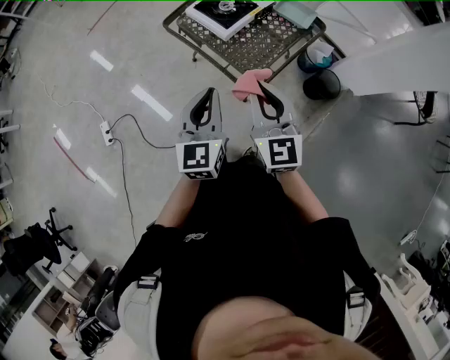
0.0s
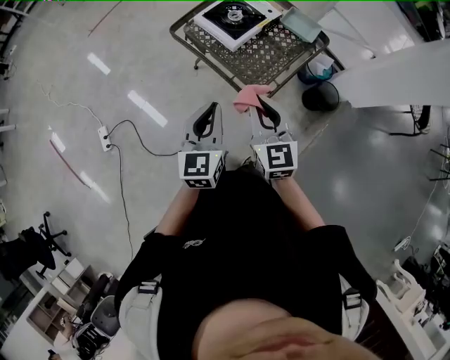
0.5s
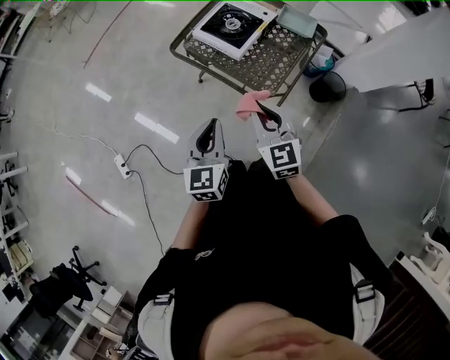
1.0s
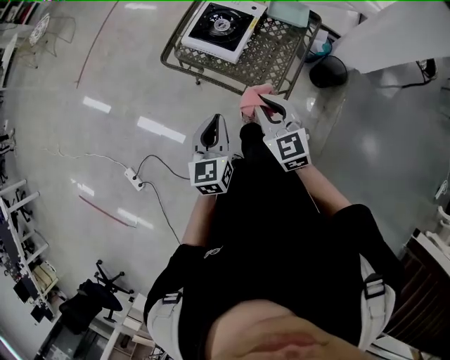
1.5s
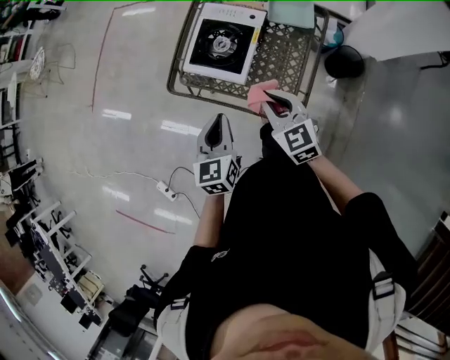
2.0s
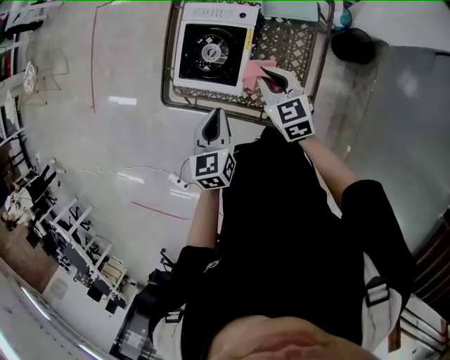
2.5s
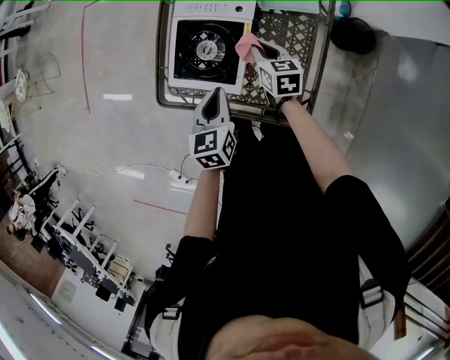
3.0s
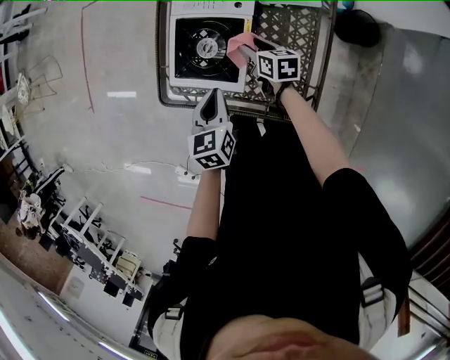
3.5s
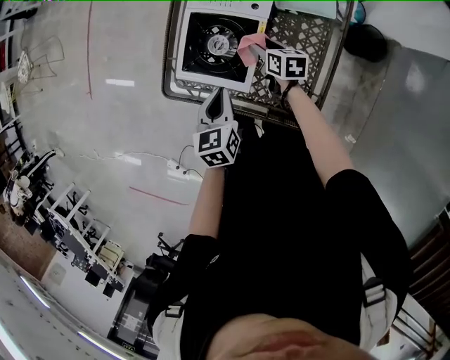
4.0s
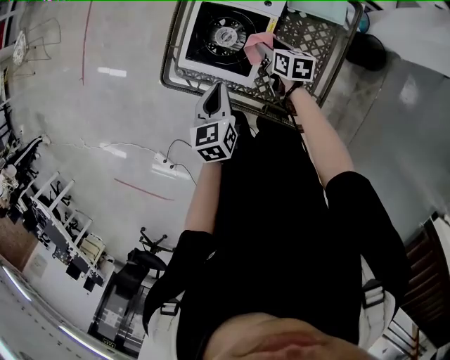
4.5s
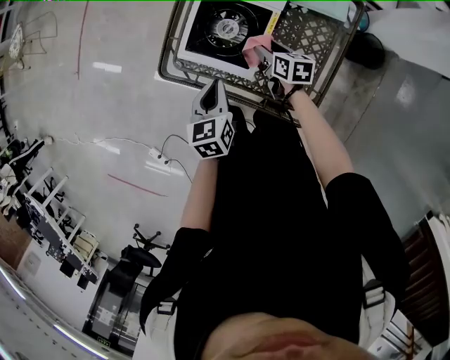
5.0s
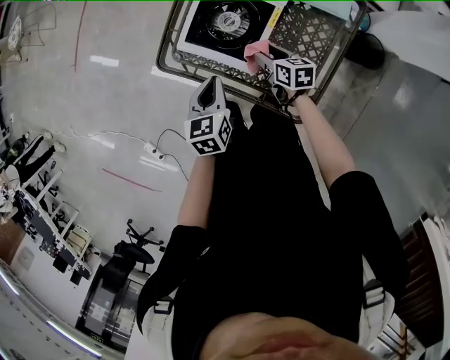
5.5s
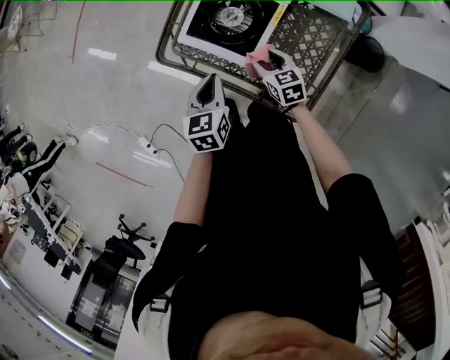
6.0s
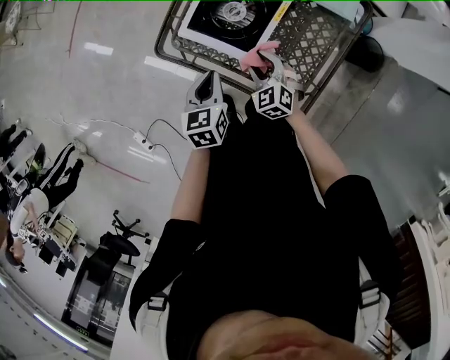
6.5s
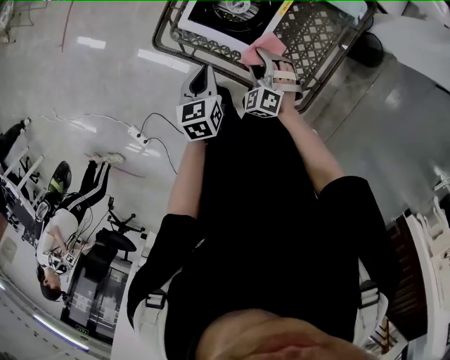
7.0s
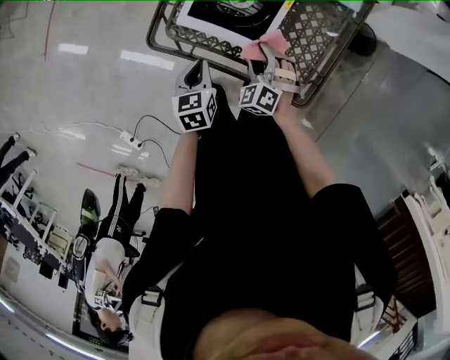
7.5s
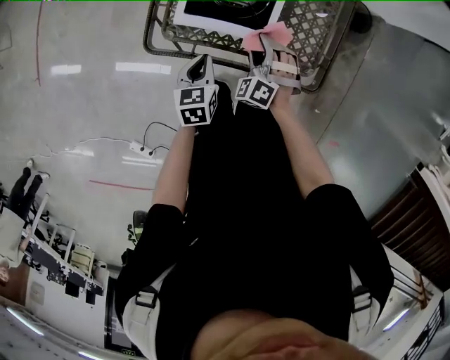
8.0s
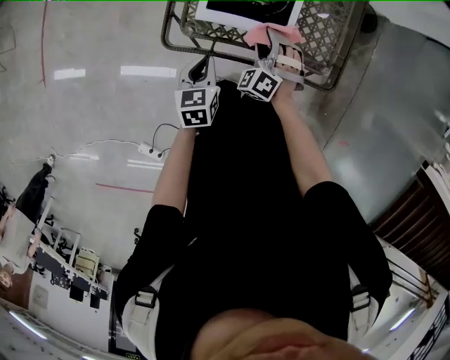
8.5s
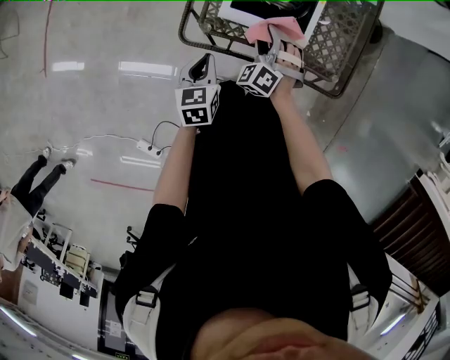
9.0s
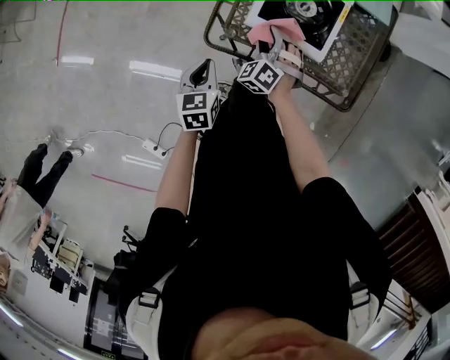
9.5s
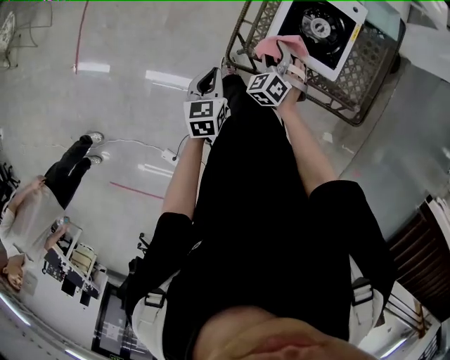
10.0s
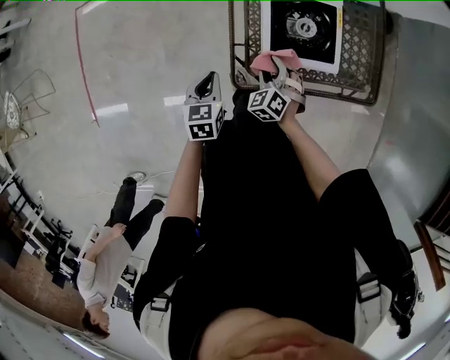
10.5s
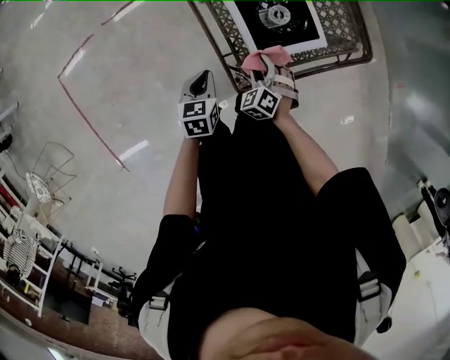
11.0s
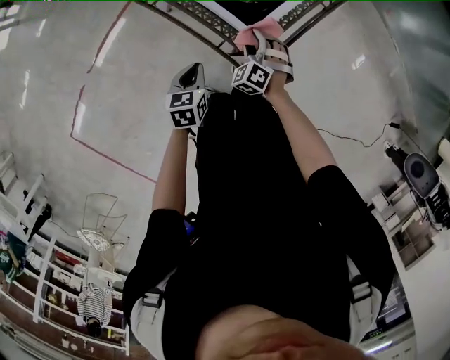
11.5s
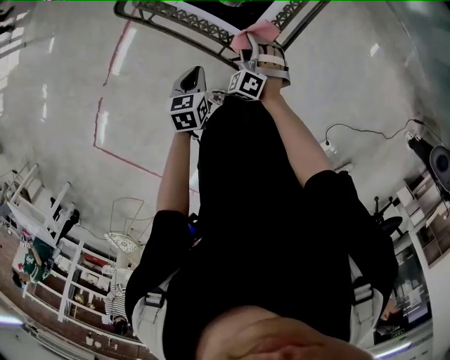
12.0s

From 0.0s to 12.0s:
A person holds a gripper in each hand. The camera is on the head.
From 0.0s to 2.0s: Both grippers travel together forward and downward, some 25 cm. The left gripper changes its angle by some 30 degrees; the right gripper swivels approximately 20 degrees.
From 2.0s to 4.0s: The left gripper shifts some 20 cm forward and downward. The right gripper heads downward and forward, covering approximately 35 cm, rolls clockwise, seen from behind, by about 50 degrees, and opens up.
From 4.0s to 6.0s: The right gripper is displaced backward and to the left by roughly 10 cm, and rotates about 30 degrees. Meanwhile the left gripper heads to the left, covering some 5 cm.
From 6.0s to 8.0s: The left gripper moves downward, some 10 cm, and changes its angle by approximately 20 degrees. Meanwhile the right gripper ends up about 5 cm from where it was, and rotates some 70 degrees.
From 8.0s to 10.0s: The grippers both shift to the left by roughly 20 cm.
From 10.0s to 12.0s: The left gripper moves about 20 cm, and rotates some 70 degrees; the right gripper changes its angle by some 60 degrees.

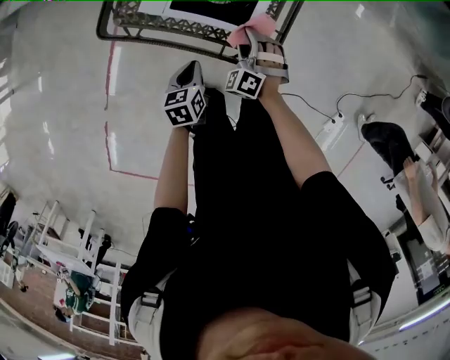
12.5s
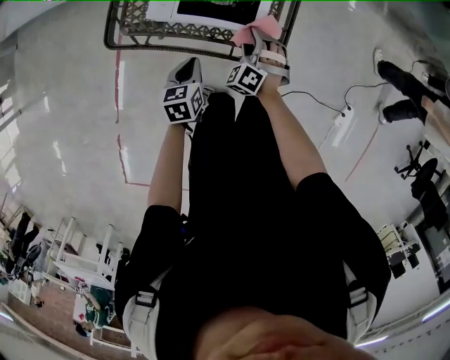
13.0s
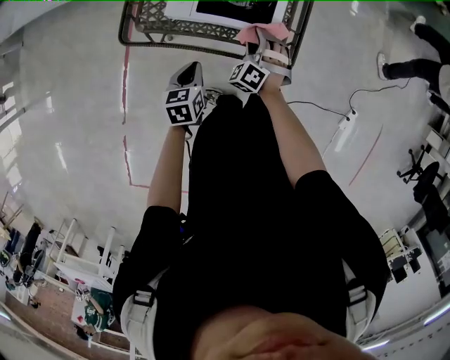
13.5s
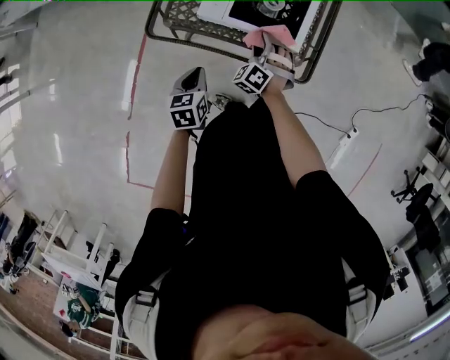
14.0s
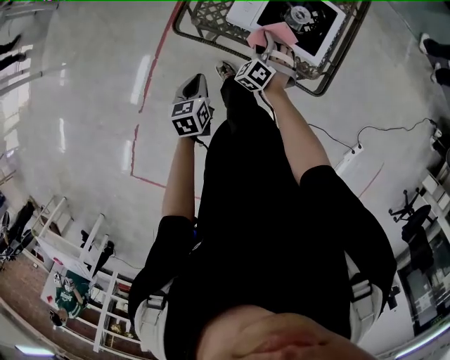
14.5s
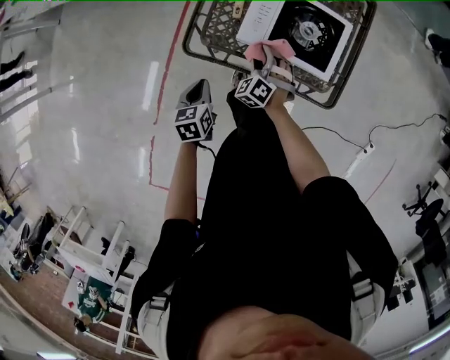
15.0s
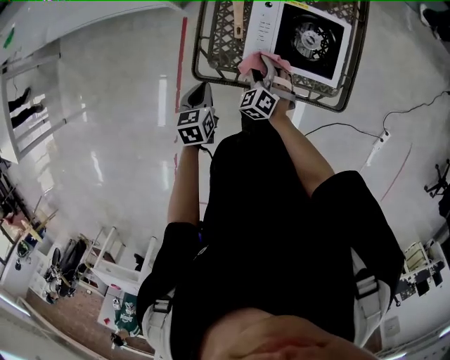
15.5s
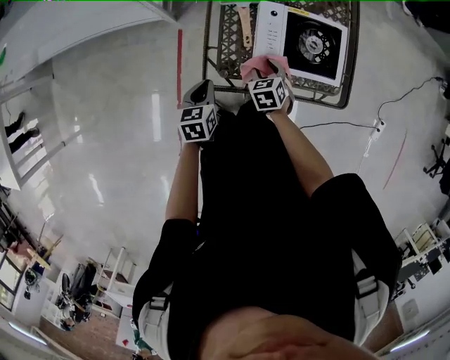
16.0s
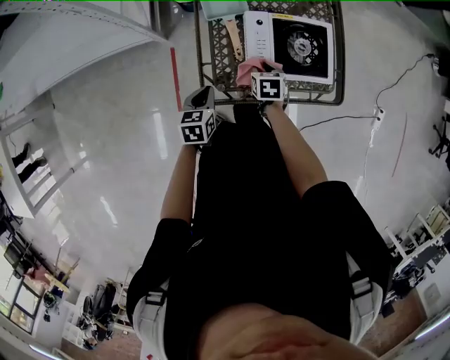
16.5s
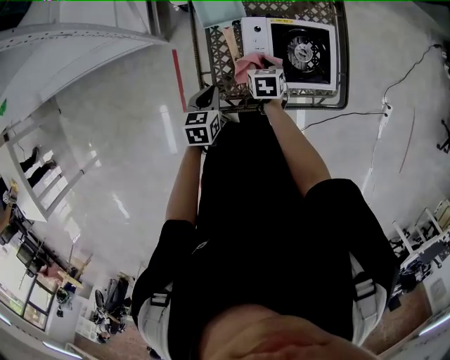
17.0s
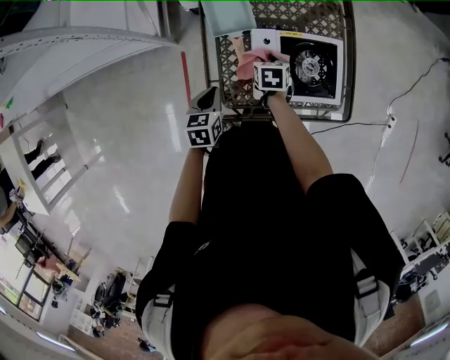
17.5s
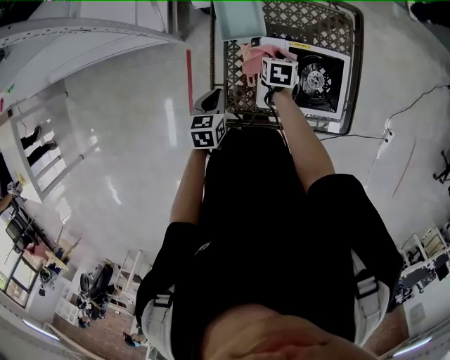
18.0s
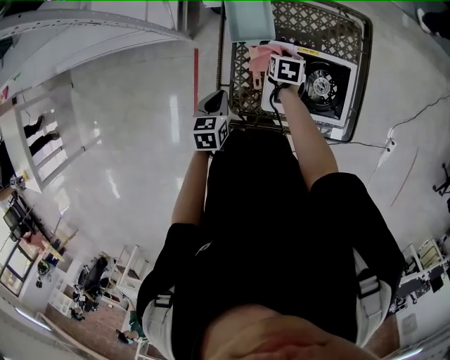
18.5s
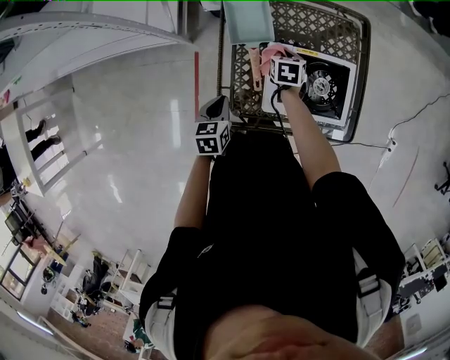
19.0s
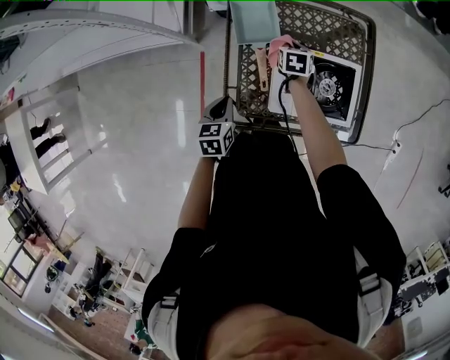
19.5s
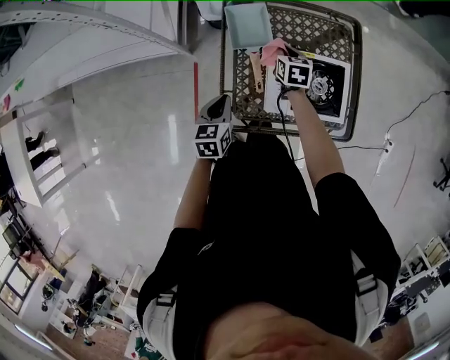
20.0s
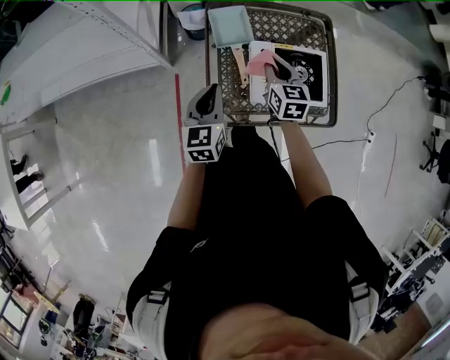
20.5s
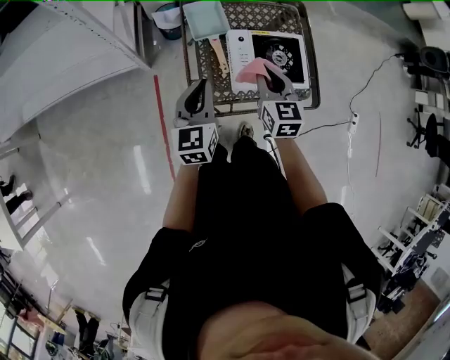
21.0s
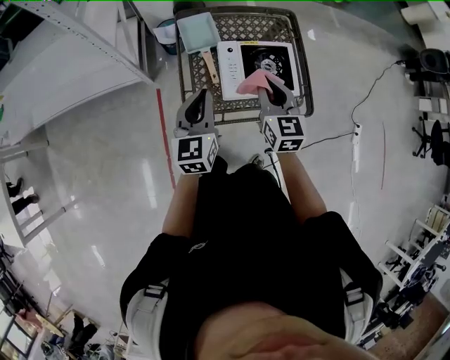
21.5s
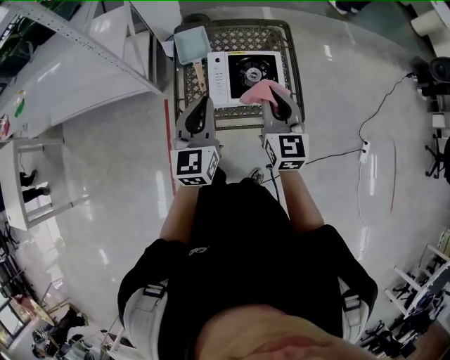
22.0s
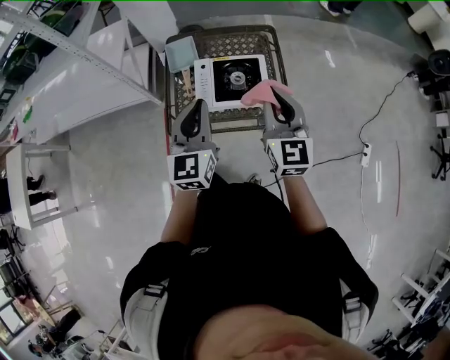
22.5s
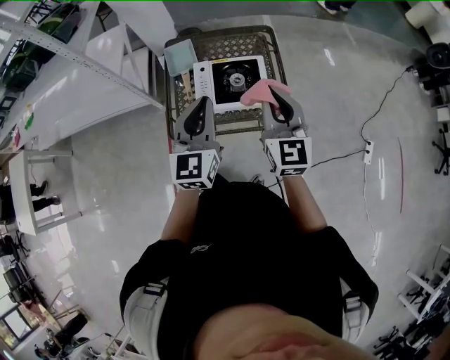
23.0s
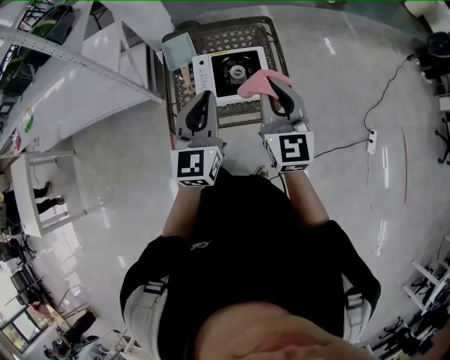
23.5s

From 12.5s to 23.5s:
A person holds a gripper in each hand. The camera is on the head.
From 12.5s to 14.5s: The two grippers go about 20 cm to the left.
From 14.5s to 16.0s: The left gripper heads forward and to the left, covering some 25 cm, and changes its angle by about 20 degrees. The right gripper moves to the left and forward, roughly 15 cm, and rotates around the line of its fingers by approximately 50 degrees, clockwise from behind.
From 16.0s to 18.0s: The grippers both shift forward by approximately 15 cm. The right gripper changes its angle by some 30 degrees.
From 18.0s to 20.0s: Both grippers move upward, about 5 cm. The right gripper closes.
From 20.0s to 21.5s: The left gripper shifts some 20 cm upward, backward and to the right, and swivels roughly 30 degrees, while the right gripper moves backward and upward, about 35 cm, and turns by about 30 degrees.
From 21.5s to 23.5s: The left gripper goes about 25 cm to the right and upward. Meanwhile the right gripper shifts some 25 cm to the right, upward and backward.

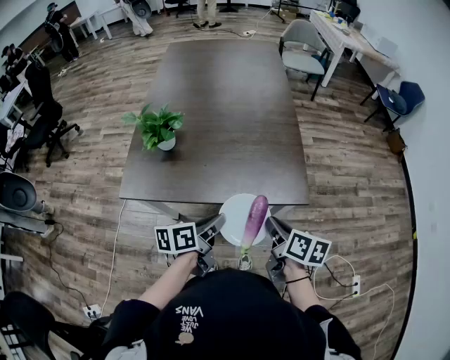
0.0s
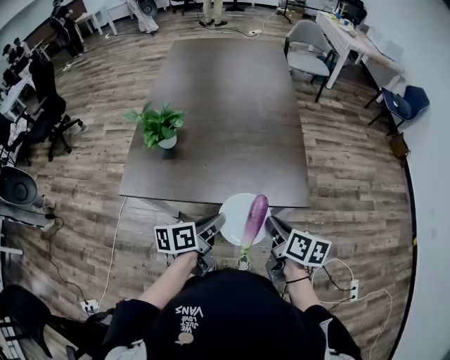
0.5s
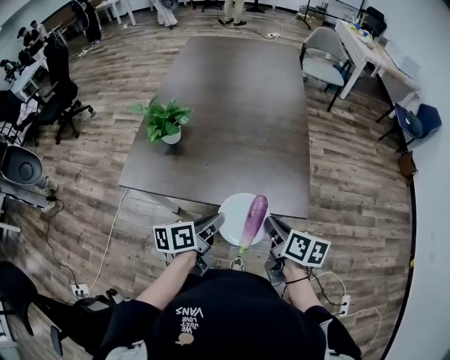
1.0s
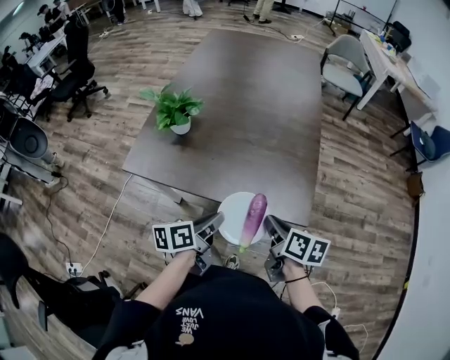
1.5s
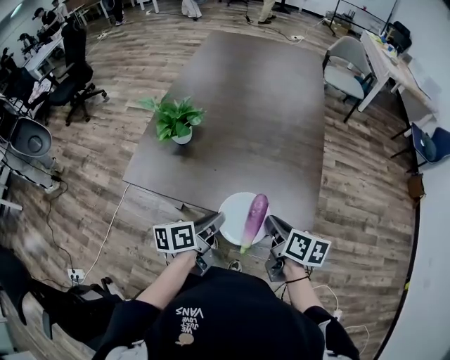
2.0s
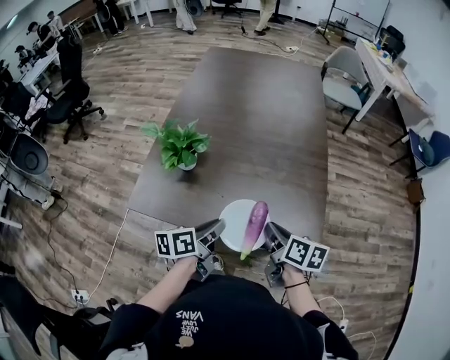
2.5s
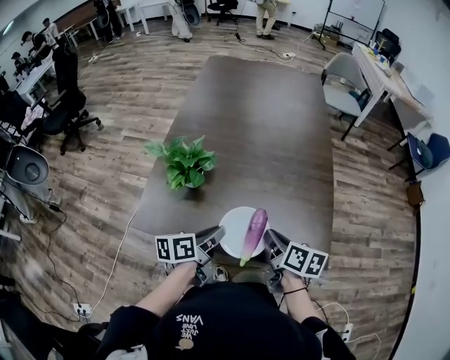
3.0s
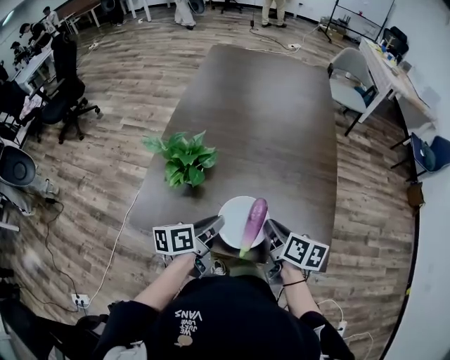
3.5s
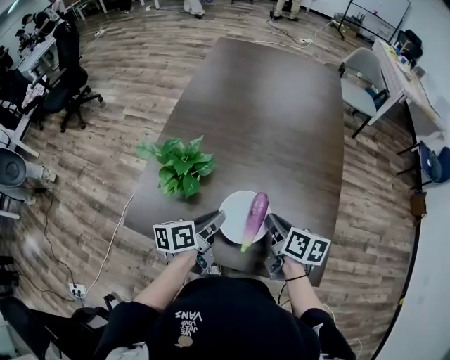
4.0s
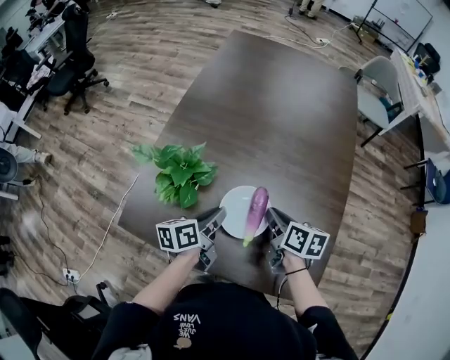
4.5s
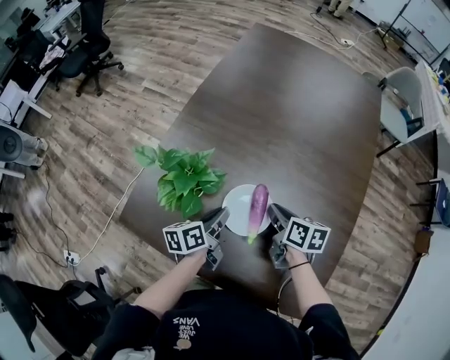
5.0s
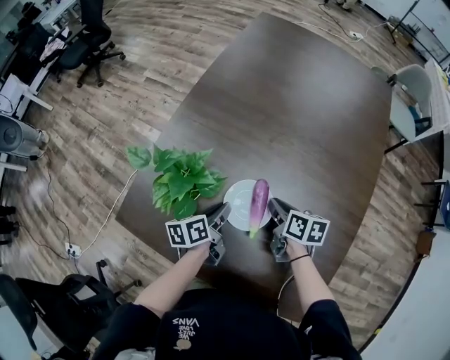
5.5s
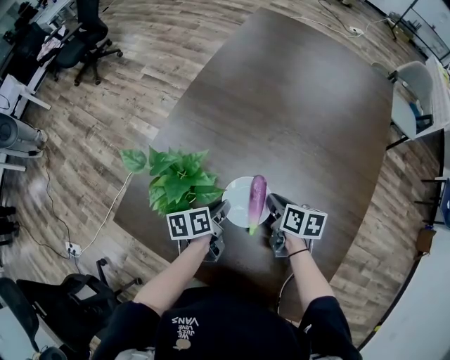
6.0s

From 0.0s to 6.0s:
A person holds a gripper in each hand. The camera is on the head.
From 0.0s to 2.0s: The right gripper moves forward, roughly 10 cm, while the left gripper goes approximately 5 cm forward.
From 2.0s to 4.0s: Both grippers travel together forward and to the left, some 20 cm.
From 4.0s to 6.0s: The right gripper heads forward and downward, covering approximately 20 cm, and swivels approximately 20 degrees, while the left gripper goes some 20 cm downward and forward, and swivels roughly 20 degrees.
